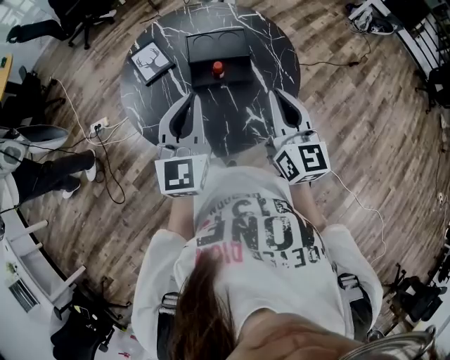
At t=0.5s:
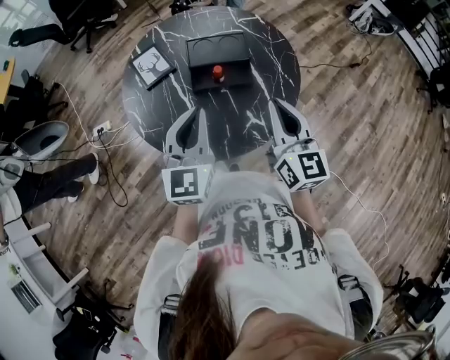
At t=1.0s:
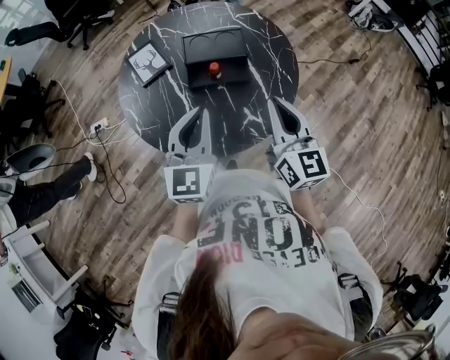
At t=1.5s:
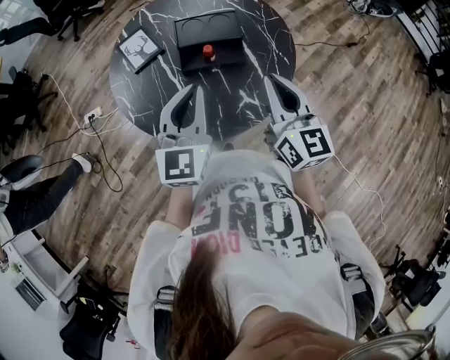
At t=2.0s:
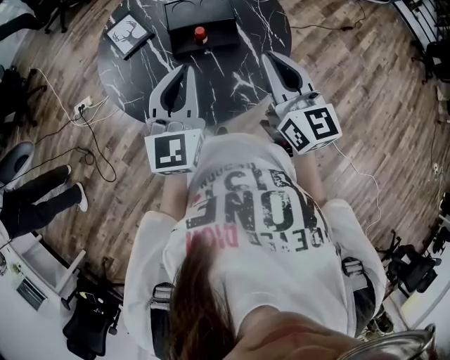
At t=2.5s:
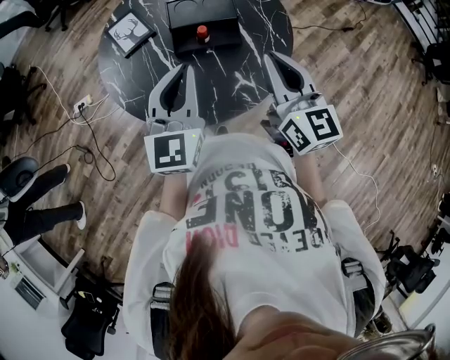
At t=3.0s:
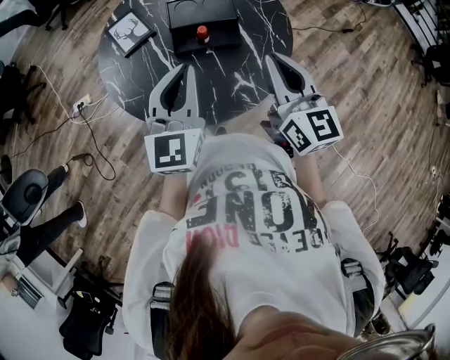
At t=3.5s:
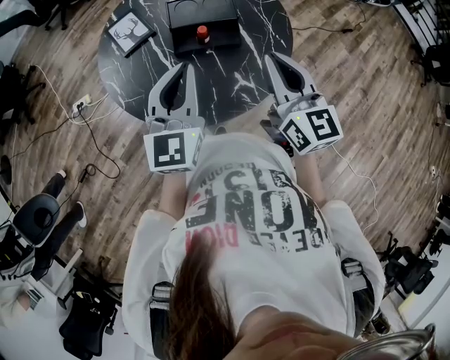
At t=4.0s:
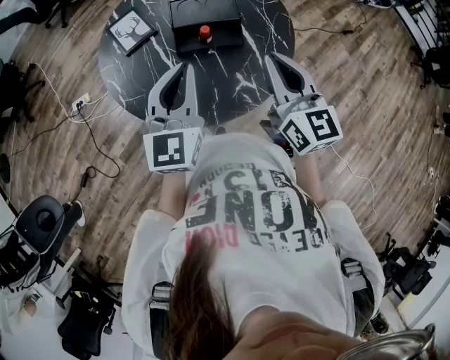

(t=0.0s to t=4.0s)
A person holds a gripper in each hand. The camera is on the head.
t=0.0s - t=4.0s: The grippers move only a little.

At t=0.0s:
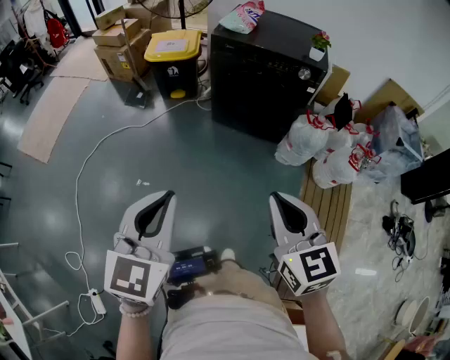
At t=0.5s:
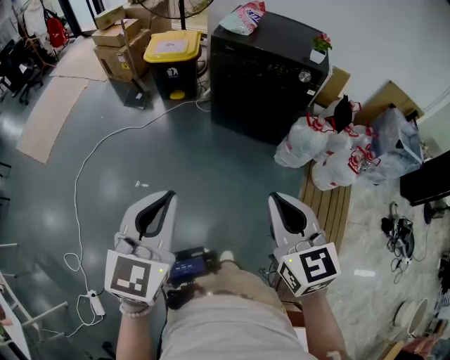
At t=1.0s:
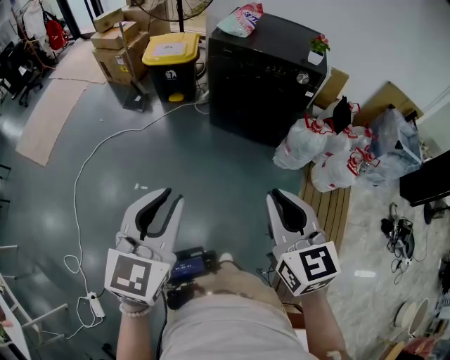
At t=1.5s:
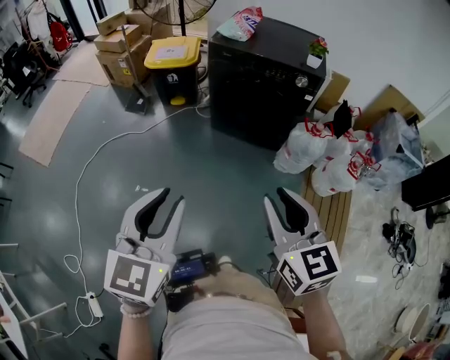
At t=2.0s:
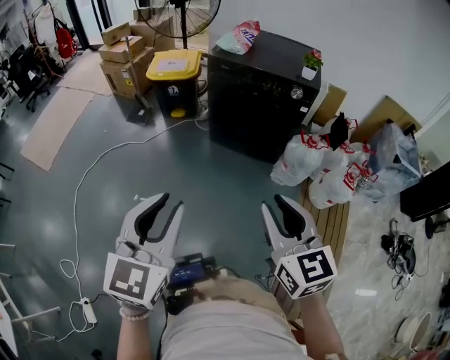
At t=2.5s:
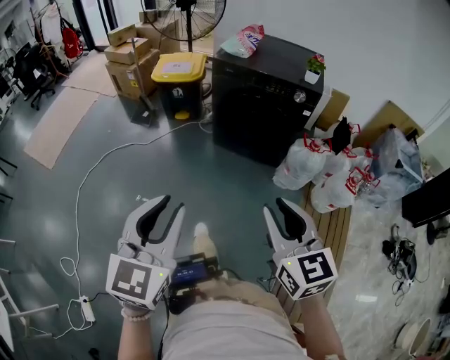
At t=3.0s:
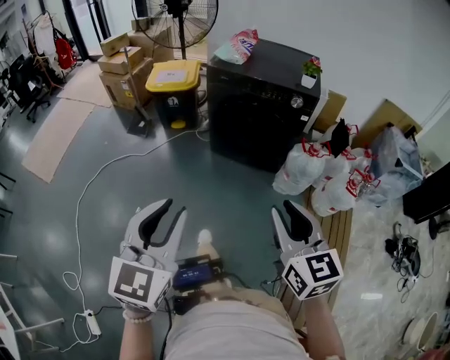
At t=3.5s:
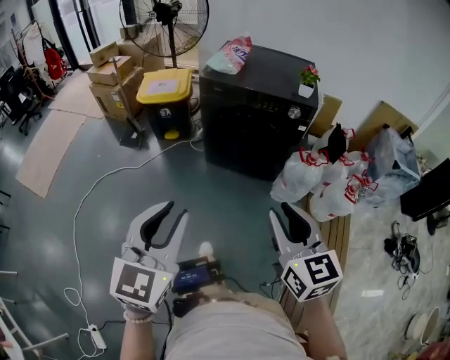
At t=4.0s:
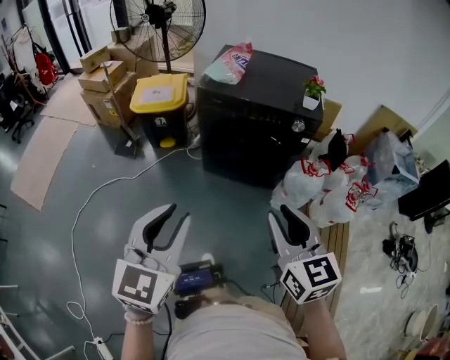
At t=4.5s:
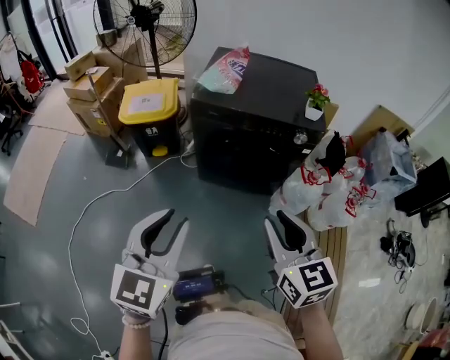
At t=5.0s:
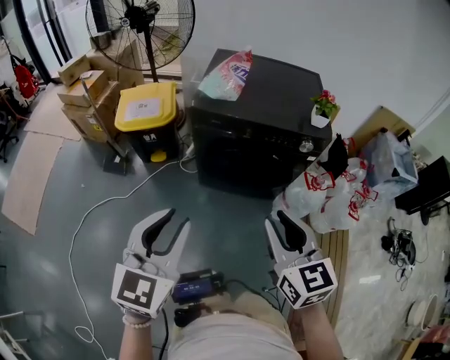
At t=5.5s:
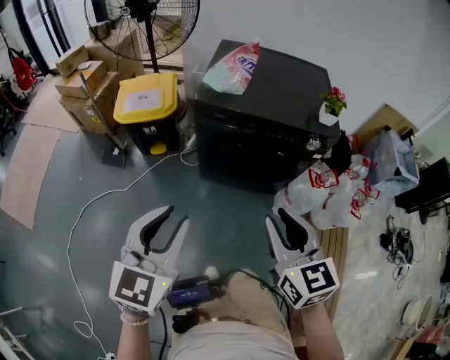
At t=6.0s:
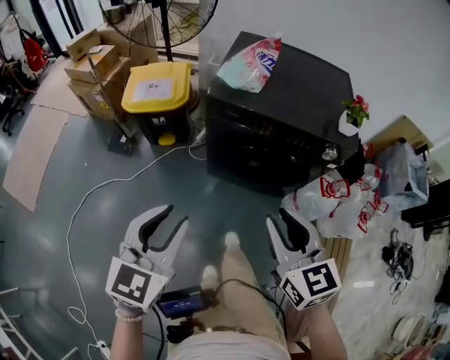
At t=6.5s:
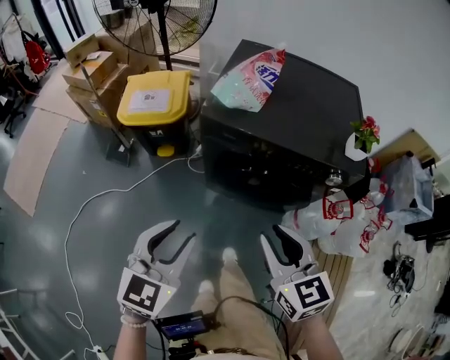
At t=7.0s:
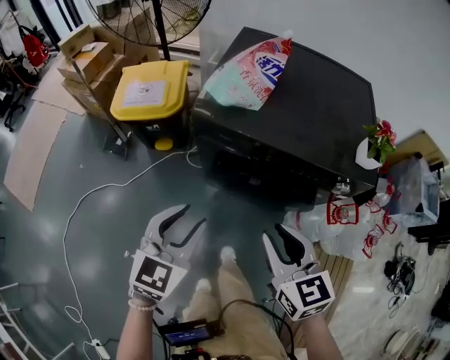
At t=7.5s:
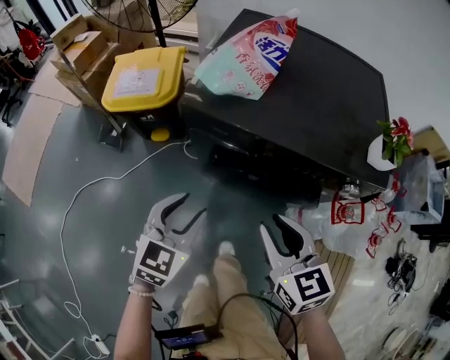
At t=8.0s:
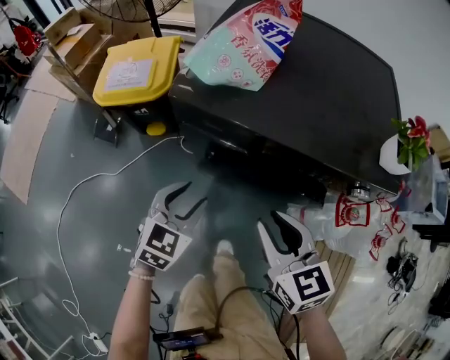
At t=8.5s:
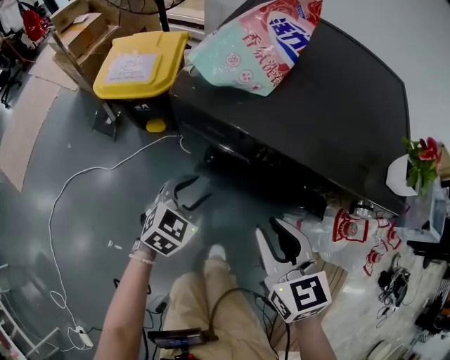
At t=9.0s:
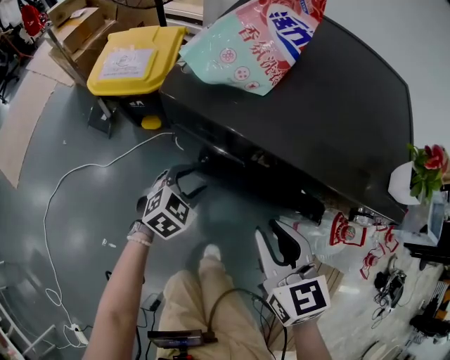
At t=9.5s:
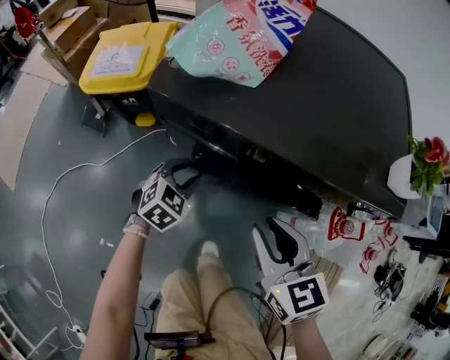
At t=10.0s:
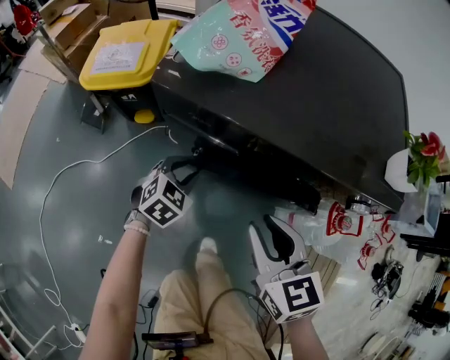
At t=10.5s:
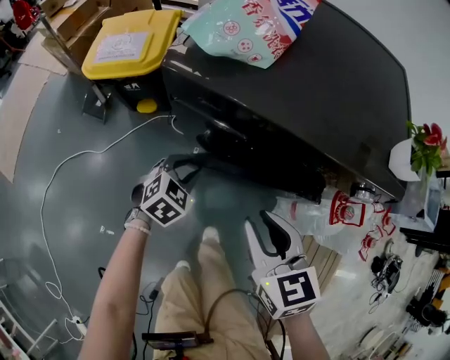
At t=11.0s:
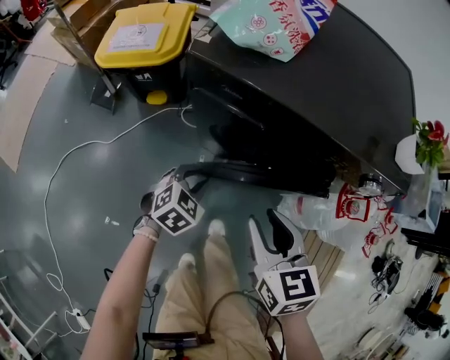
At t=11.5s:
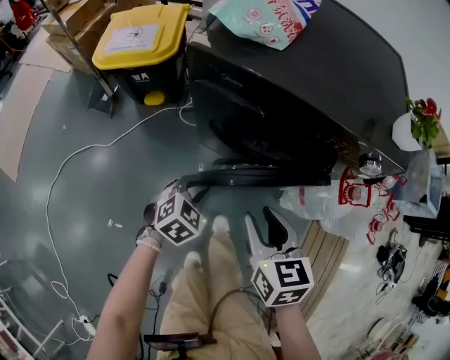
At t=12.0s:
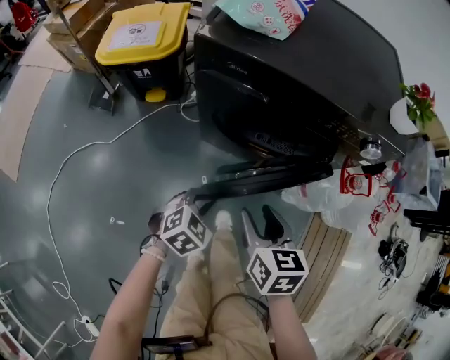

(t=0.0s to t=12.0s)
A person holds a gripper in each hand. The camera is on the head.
t=0.0s - t=2.0s: The left gripper opens up. The right gripper opens up.
t=2.0s - t=4.0s: The grippers both shift forward by some 20 cm.
t=4.0s - t=6.0s: Both grippers travel together forward, roughly 20 cm.
t=6.0s - t=8.0s: The left gripper shifts about 35 cm downward and forward. The right gripper goes approximately 25 cm forward and downward.
t=8.0s - t=10.0s: The left gripper travels downward and forward by roughly 15 cm.
t=10.0s - t=12.0s: The right gripper travels backward and downward by about 15 cm, rotates some 20 degrees, and opens up. Meanwhile the left gripper shifts about 20 cm backward.

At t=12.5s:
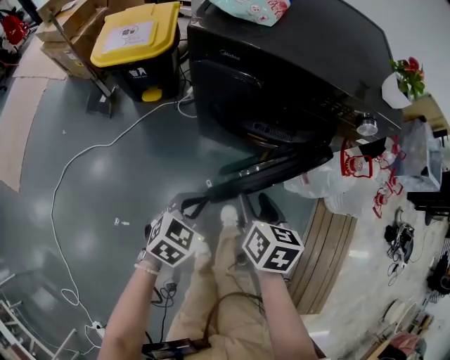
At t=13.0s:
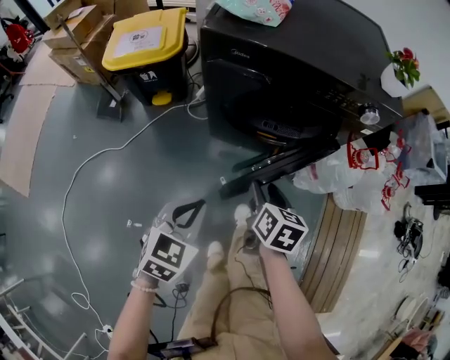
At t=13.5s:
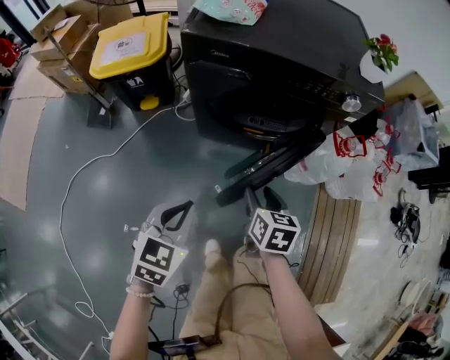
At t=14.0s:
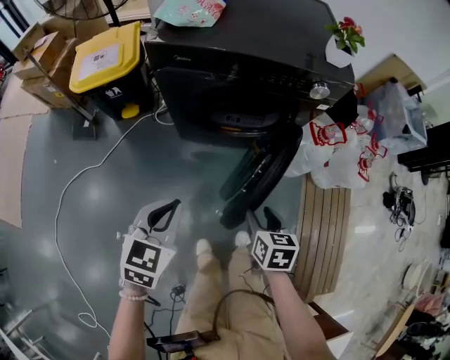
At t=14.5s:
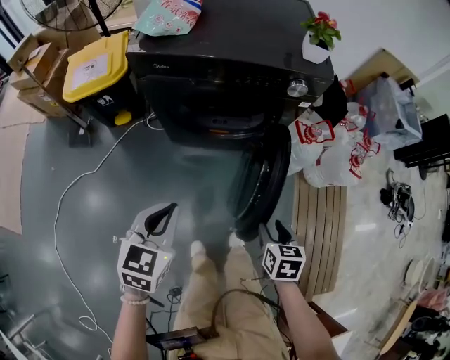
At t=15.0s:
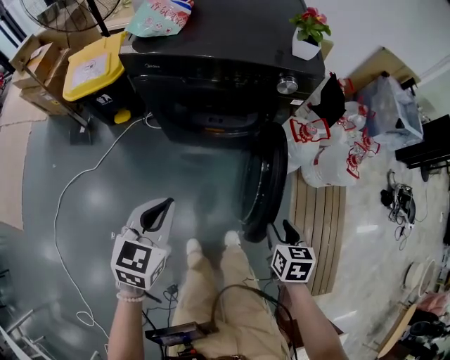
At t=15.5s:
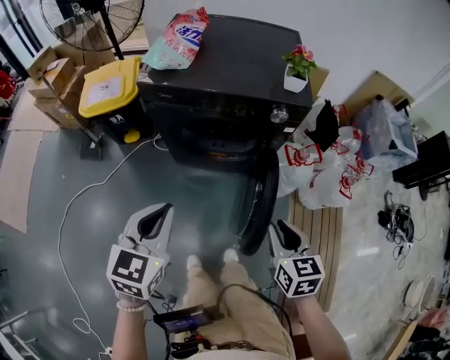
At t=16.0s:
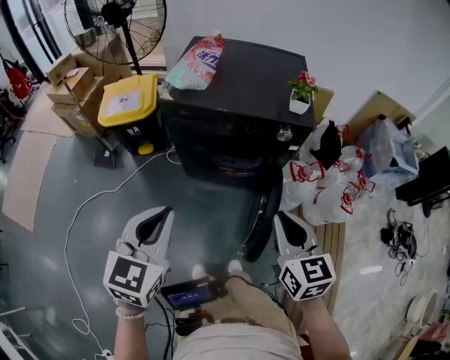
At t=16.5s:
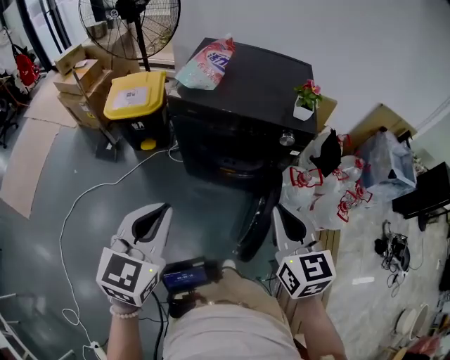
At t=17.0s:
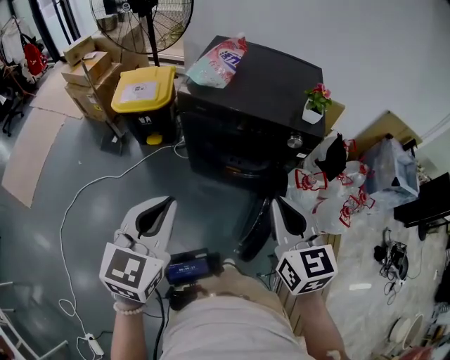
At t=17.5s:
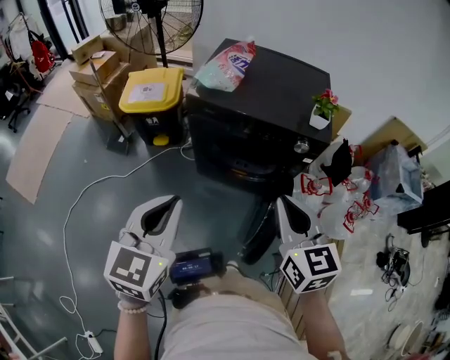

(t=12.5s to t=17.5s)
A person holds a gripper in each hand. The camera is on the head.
t=12.5s - t=15.0s: The left gripper moves upward and to the right, approximately 20 cm. The right gripper moves to the right and backward, some 30 cm.
t=15.0s - t=17.5s: The two grippers go approximately 30 cm upward. The right gripper points its fingers approximately 30 degrees further upward, and closes up. The left gripper rotates roughly 20 degrees.

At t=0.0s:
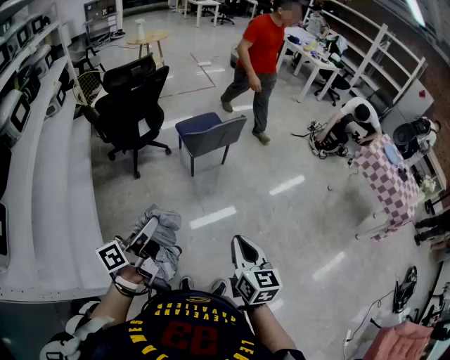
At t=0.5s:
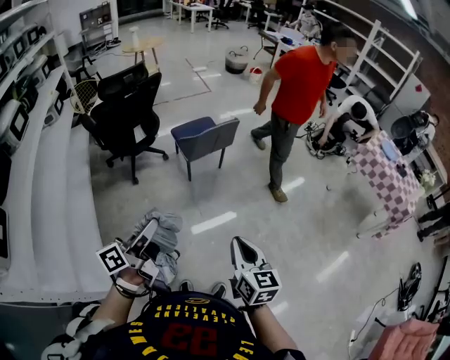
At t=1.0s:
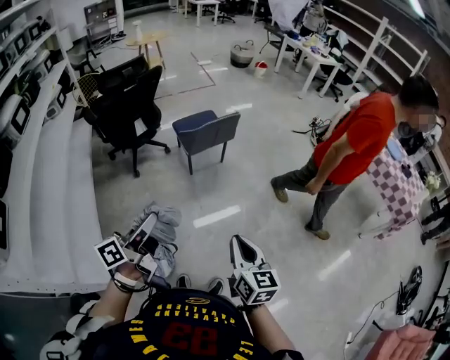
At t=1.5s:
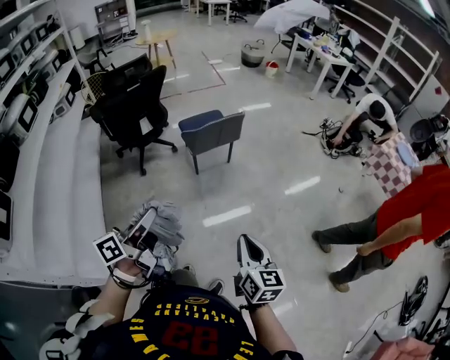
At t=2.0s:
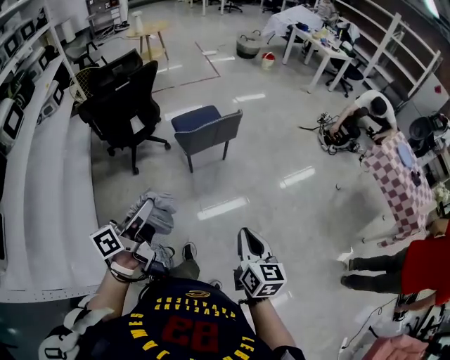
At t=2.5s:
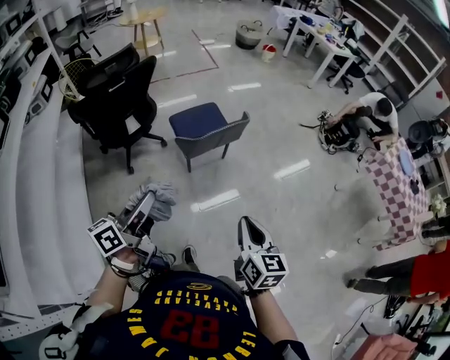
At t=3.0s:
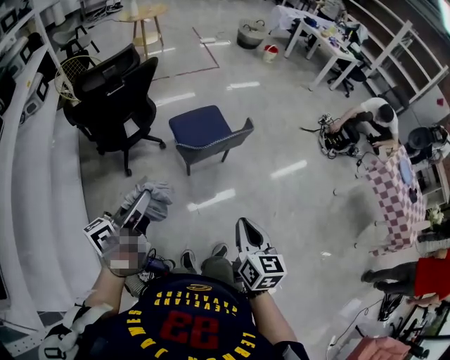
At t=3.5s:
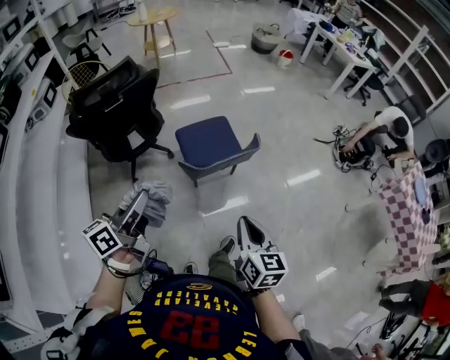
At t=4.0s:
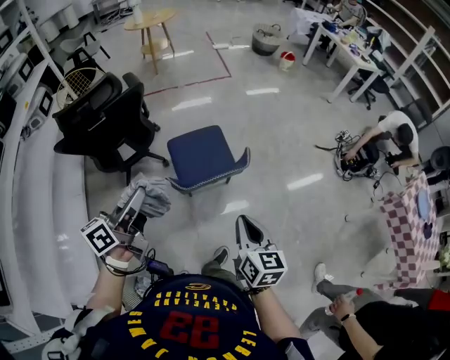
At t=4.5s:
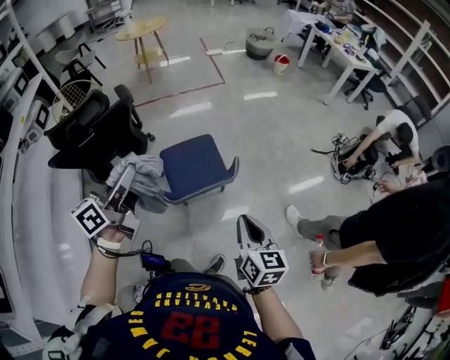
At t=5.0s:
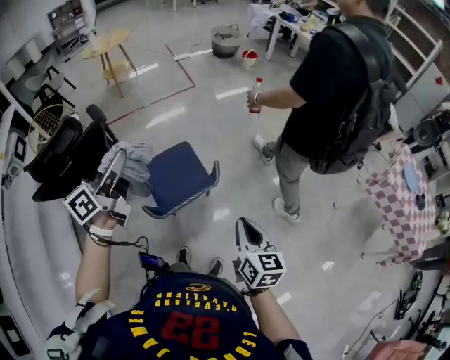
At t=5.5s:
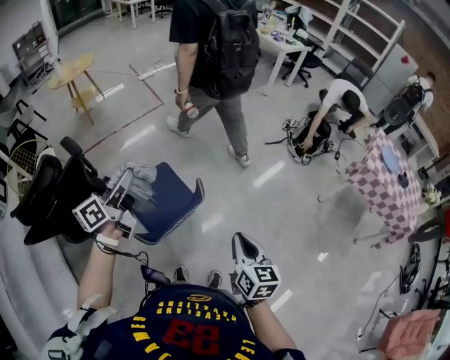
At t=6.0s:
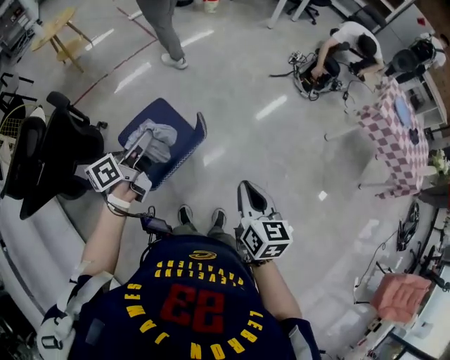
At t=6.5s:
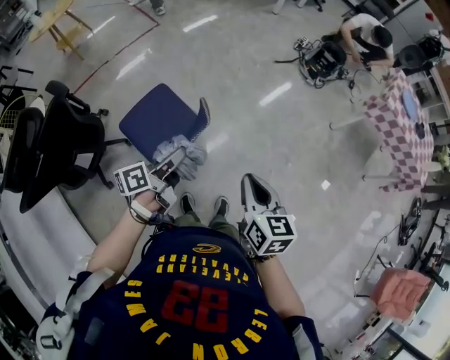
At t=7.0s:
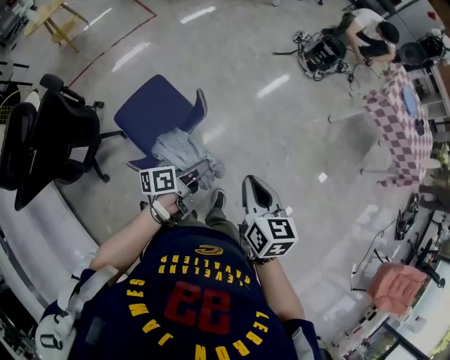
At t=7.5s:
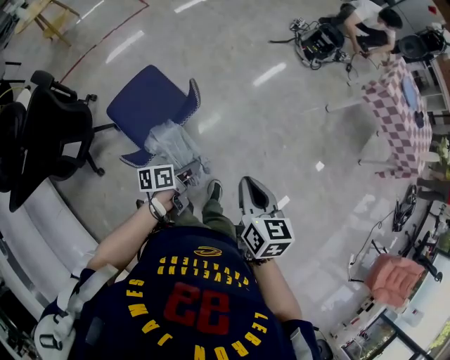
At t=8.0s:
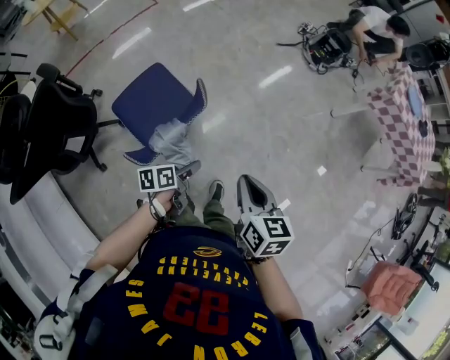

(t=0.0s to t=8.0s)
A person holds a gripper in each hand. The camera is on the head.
t=0.0s - t=2.0s: The grippers both shift forward and to the right by some 15 cm.
t=2.0s - t=4.0s: Both grippers travel together forward, approximately 40 cm.
t=4.0s - t=6.0s: The left gripper changes place by about 30 cm, and rotates about 30 degrees. The right gripper changes place by approximately 10 cm, and turns by roughly 30 degrees.
t=6.0s - t=8.0s: The right gripper goes roughly 5 cm downward. Meanwhile the left gripper heads downward, to the right and backward, covering some 30 cm, turns by some 40 degrees, and opens its fingers.
